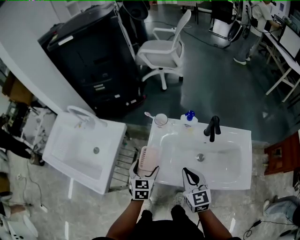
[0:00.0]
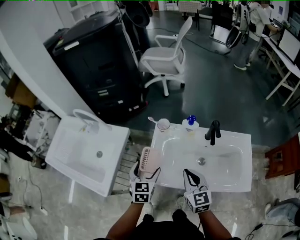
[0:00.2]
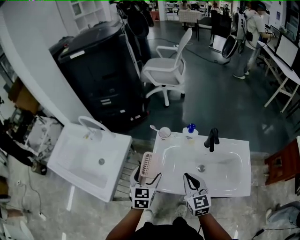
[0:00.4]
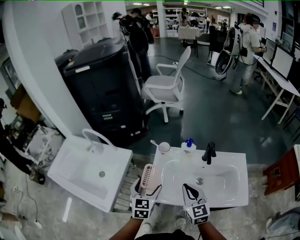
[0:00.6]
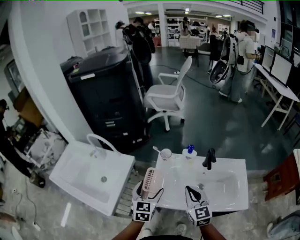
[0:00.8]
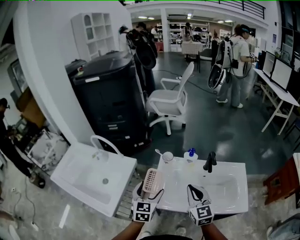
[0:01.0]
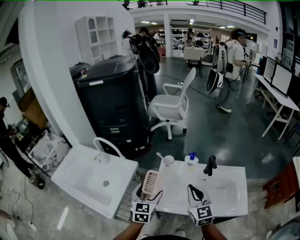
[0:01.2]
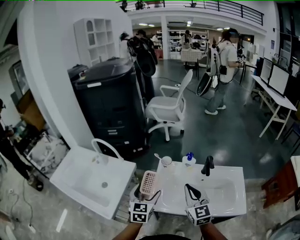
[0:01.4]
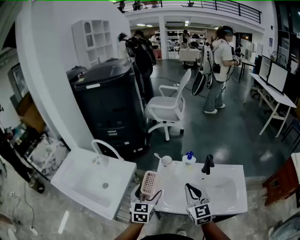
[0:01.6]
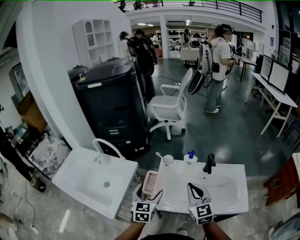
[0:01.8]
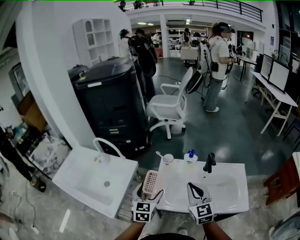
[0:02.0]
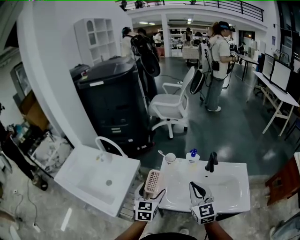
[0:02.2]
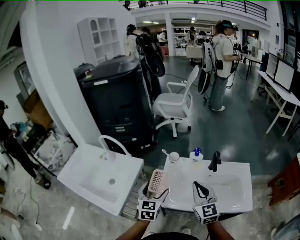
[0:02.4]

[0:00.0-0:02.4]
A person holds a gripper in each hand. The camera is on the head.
0:00.0 to 0:01.2: Both grippers move upward, about 10 cm.
0:01.2 to 0:02.4: There are only small adjustments of the grippers.

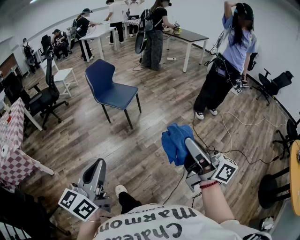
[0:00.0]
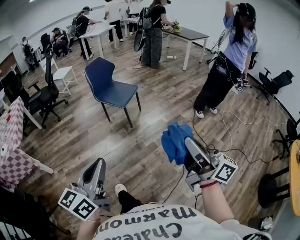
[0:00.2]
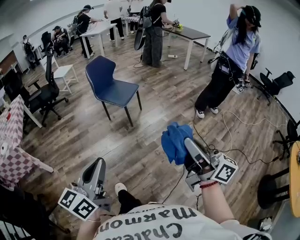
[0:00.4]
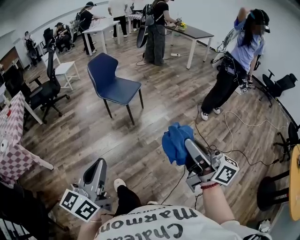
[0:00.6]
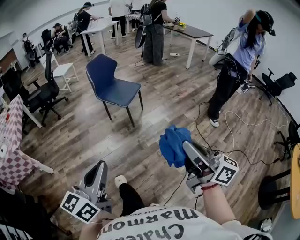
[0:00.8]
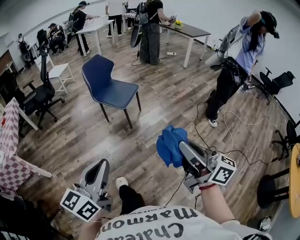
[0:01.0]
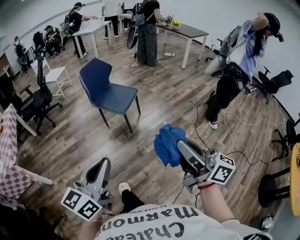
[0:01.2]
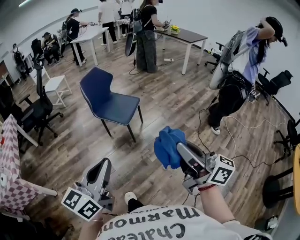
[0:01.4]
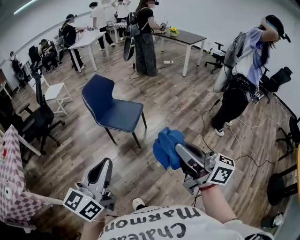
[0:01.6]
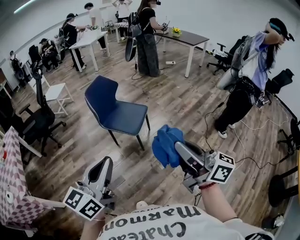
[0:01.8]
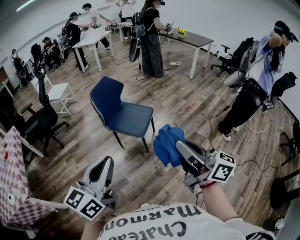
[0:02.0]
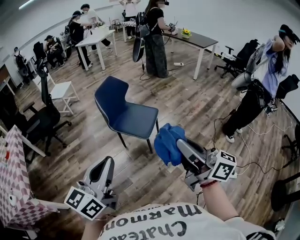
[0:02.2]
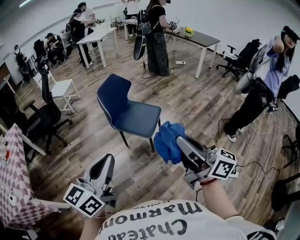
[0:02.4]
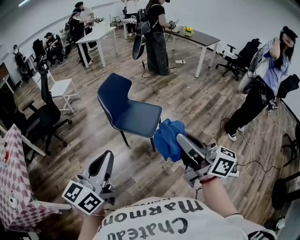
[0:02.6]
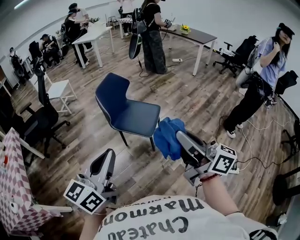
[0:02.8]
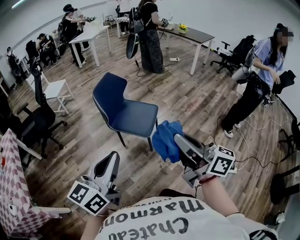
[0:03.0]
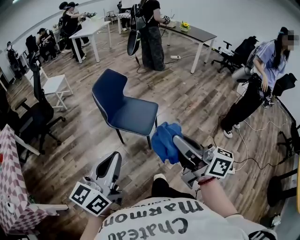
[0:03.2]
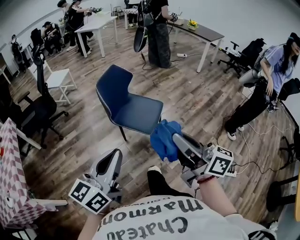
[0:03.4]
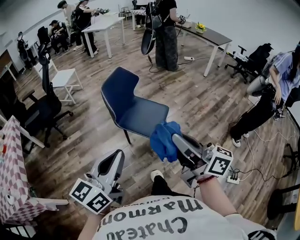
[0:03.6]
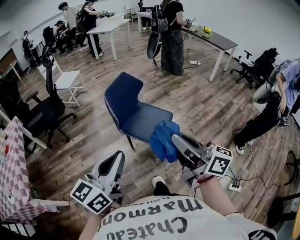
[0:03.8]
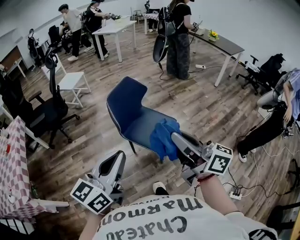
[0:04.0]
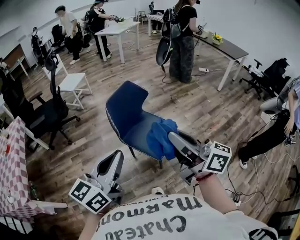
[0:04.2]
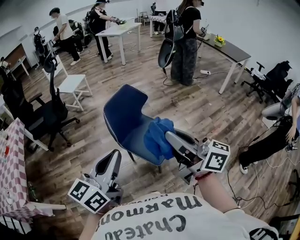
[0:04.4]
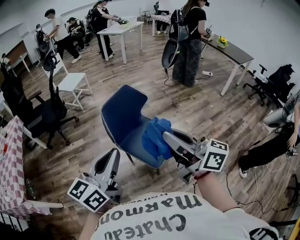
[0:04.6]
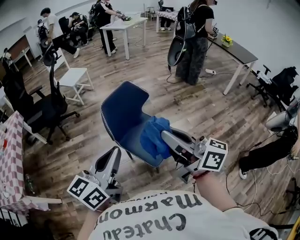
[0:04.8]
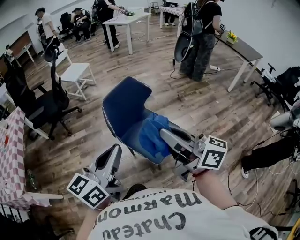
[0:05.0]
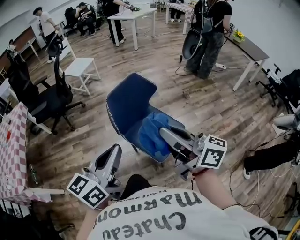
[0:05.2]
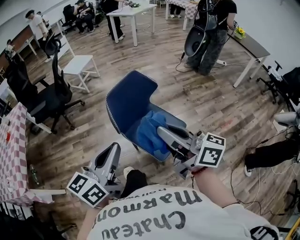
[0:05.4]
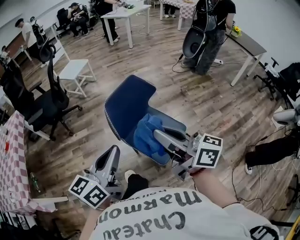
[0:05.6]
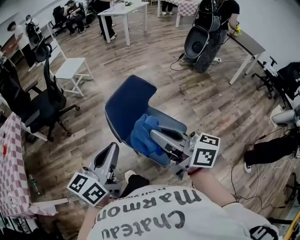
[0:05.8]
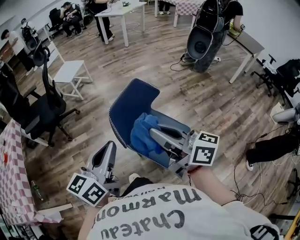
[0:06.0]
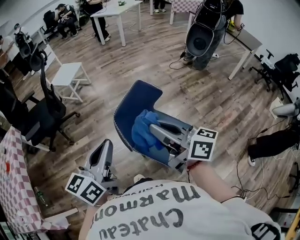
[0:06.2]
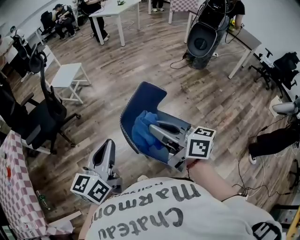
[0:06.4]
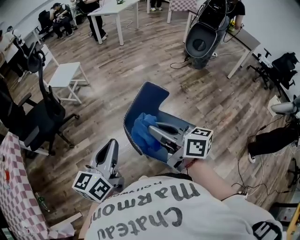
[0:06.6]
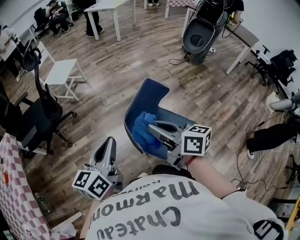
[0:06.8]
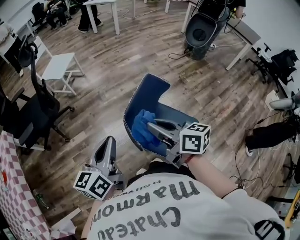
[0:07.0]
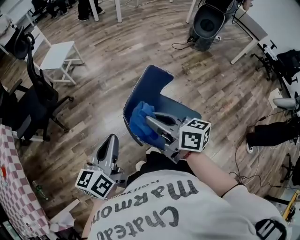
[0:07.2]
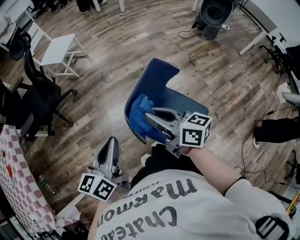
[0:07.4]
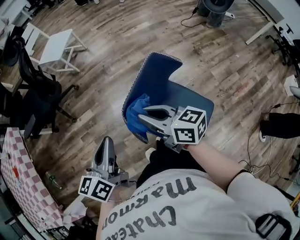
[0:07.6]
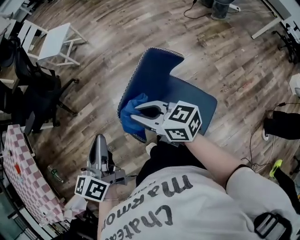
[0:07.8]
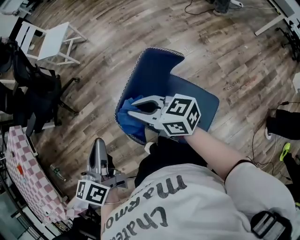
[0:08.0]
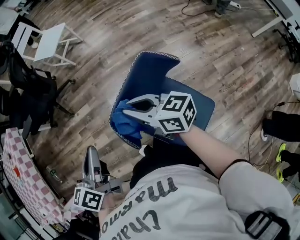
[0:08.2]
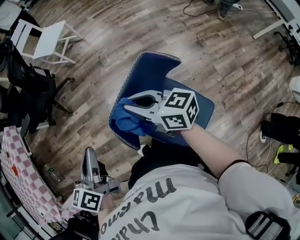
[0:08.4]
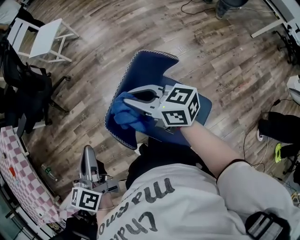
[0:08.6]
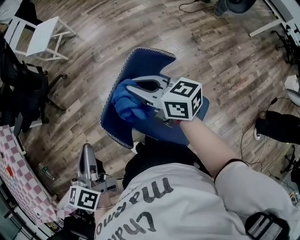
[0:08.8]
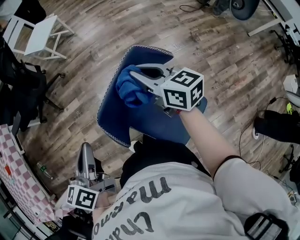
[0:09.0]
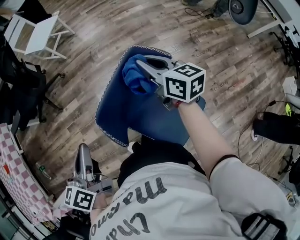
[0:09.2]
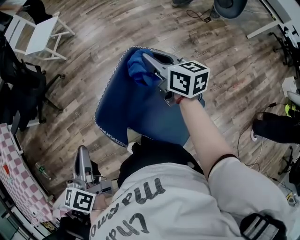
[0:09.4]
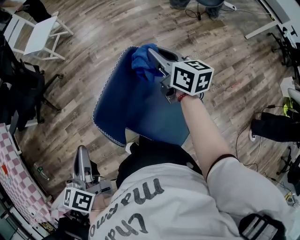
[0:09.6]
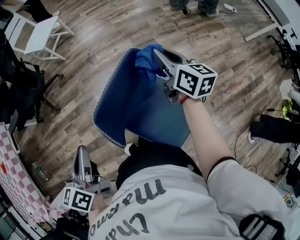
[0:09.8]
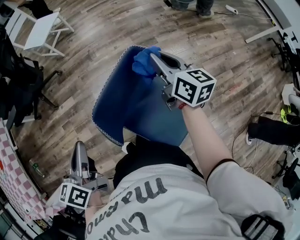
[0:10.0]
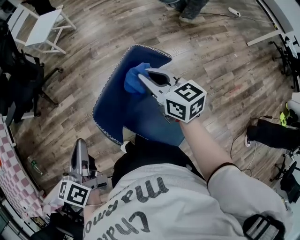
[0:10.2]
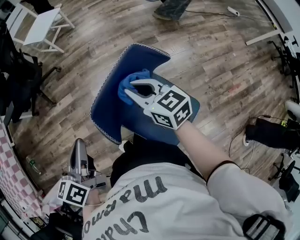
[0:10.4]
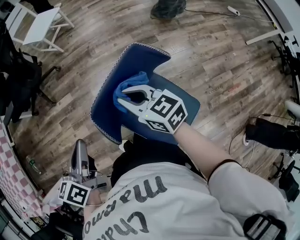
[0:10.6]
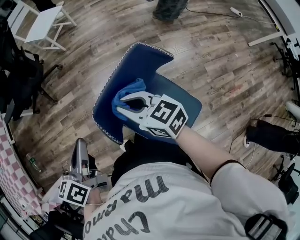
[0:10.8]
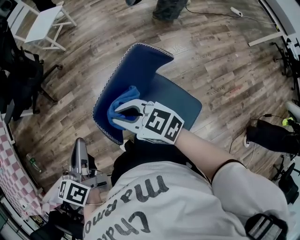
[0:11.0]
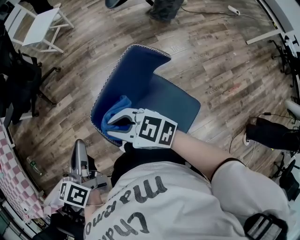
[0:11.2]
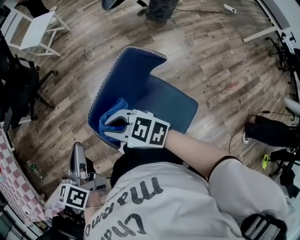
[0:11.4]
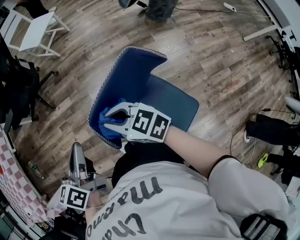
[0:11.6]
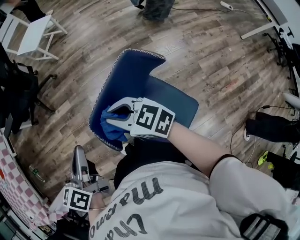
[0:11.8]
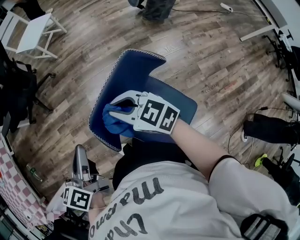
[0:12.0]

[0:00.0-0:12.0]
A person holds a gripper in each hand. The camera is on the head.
0:00.0 to 0:01.6: The right gripper moves forward and to the left, approximately 30 cm. The left gripper shifts about 30 cm forward.
0:01.6 to 0:03.0: The grippers both shift forward and to the left by some 20 cm.
0:03.0 to 0:04.4: Both grippers move forward, some 25 cm.
0:04.4 to 0:06.0: The two grippers go roughly 20 cm forward.
0:06.0 to 0:07.6: Both grippers travel together forward, downward and to the left, about 25 cm.
0:07.6 to 0:09.0: The right gripper shifts roughly 15 cm to the right and forward.
0:09.0 to 0:10.4: The right gripper reaches approximately 10 cm to the right, then returns.
0:10.4 to 0:12.0: The right gripper goes roughly 5 cm to the left, and turns by some 20 degrees.

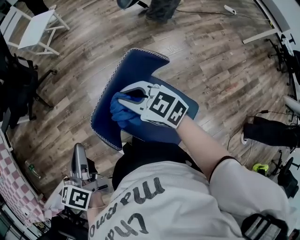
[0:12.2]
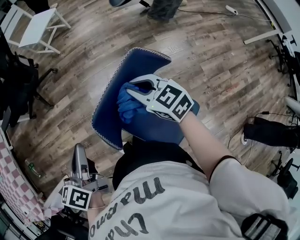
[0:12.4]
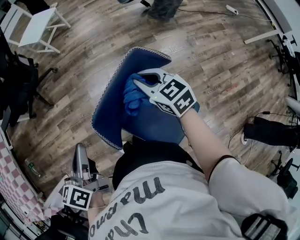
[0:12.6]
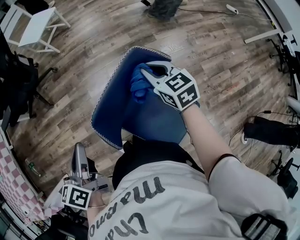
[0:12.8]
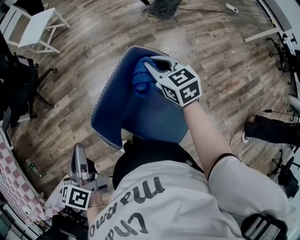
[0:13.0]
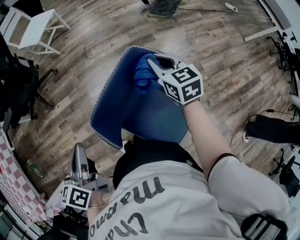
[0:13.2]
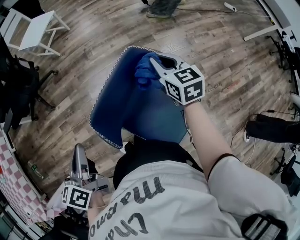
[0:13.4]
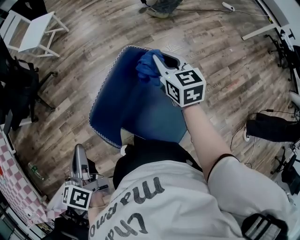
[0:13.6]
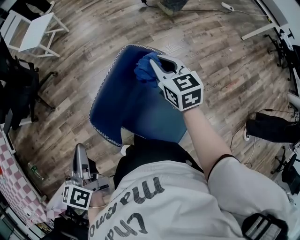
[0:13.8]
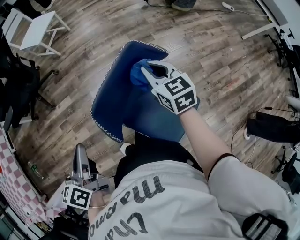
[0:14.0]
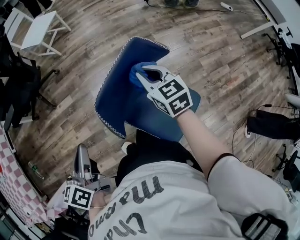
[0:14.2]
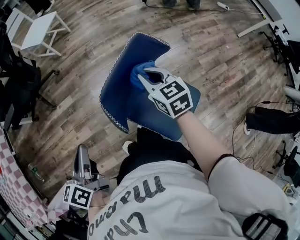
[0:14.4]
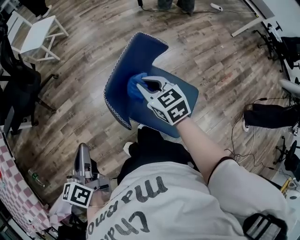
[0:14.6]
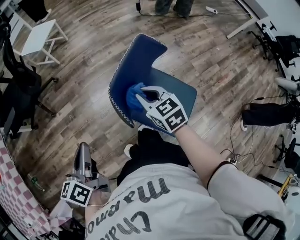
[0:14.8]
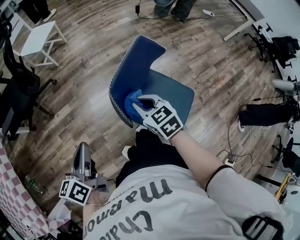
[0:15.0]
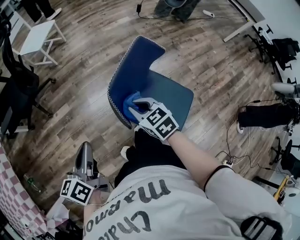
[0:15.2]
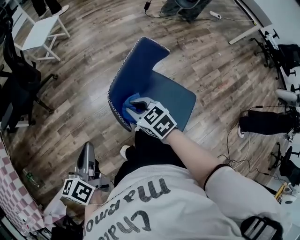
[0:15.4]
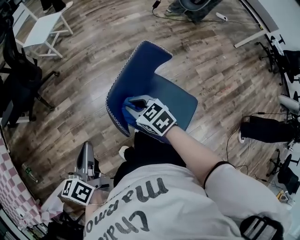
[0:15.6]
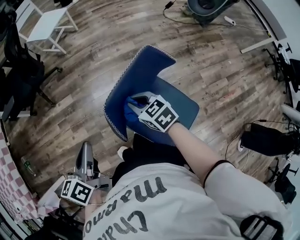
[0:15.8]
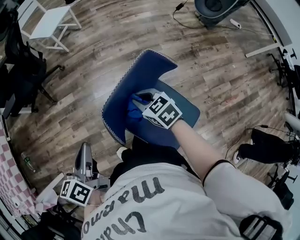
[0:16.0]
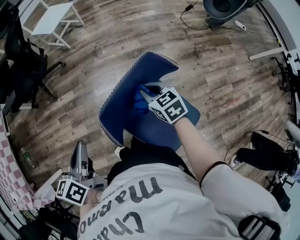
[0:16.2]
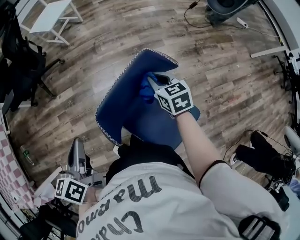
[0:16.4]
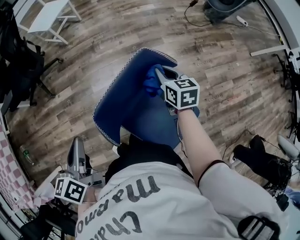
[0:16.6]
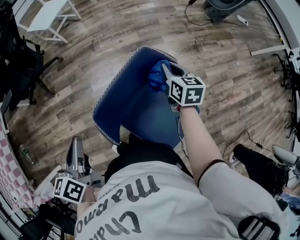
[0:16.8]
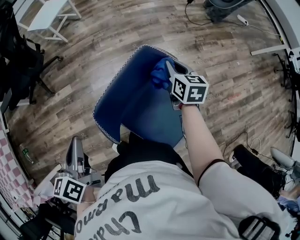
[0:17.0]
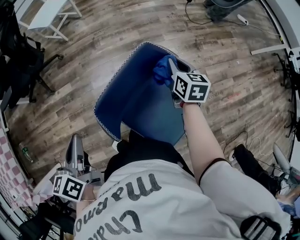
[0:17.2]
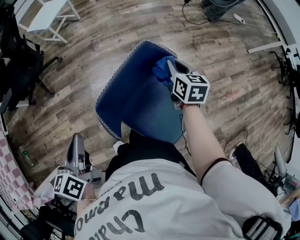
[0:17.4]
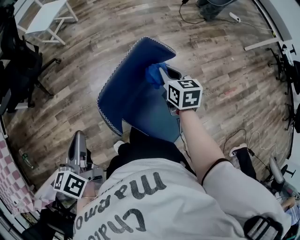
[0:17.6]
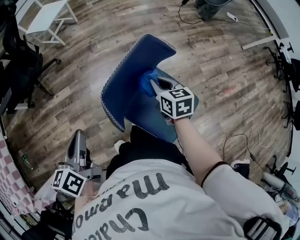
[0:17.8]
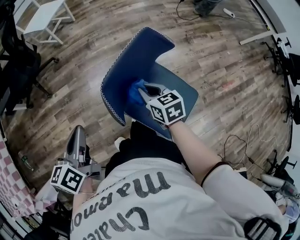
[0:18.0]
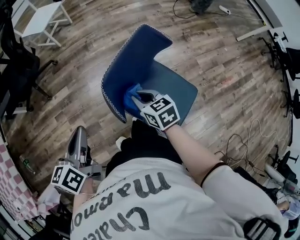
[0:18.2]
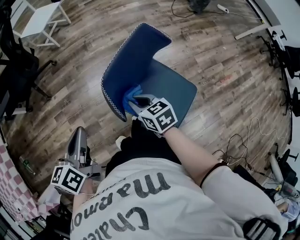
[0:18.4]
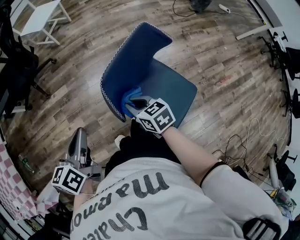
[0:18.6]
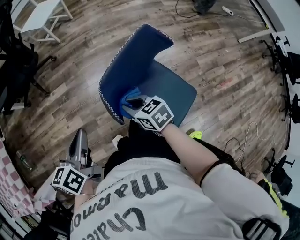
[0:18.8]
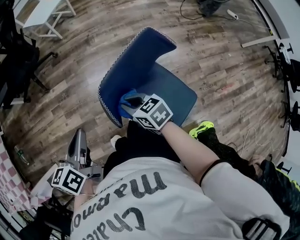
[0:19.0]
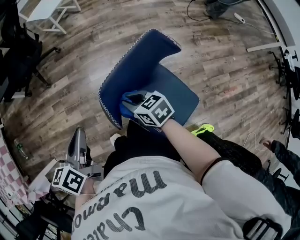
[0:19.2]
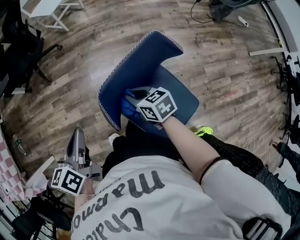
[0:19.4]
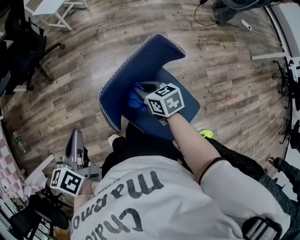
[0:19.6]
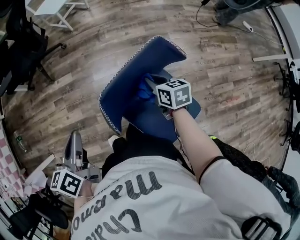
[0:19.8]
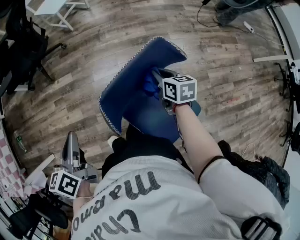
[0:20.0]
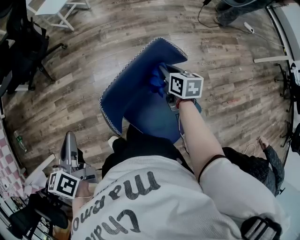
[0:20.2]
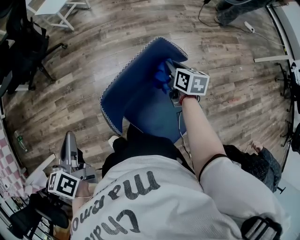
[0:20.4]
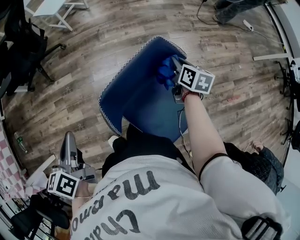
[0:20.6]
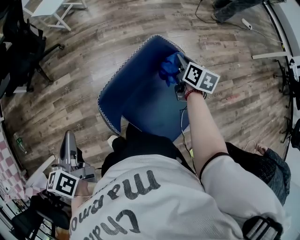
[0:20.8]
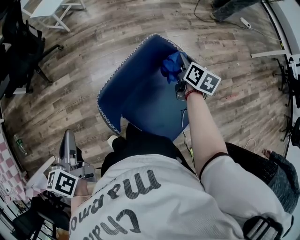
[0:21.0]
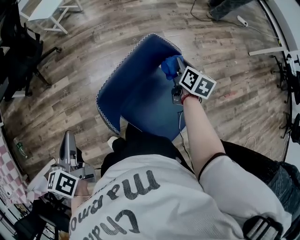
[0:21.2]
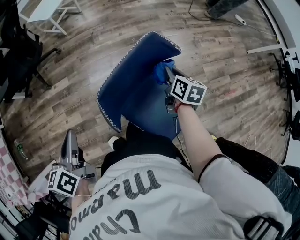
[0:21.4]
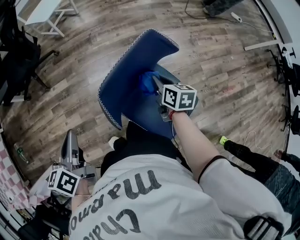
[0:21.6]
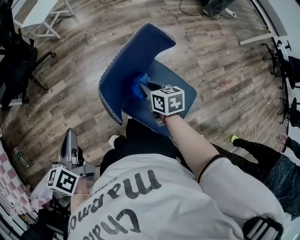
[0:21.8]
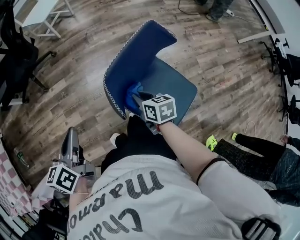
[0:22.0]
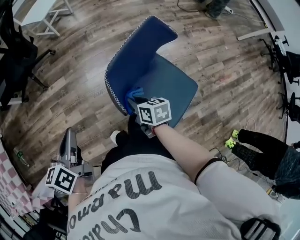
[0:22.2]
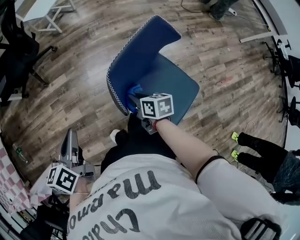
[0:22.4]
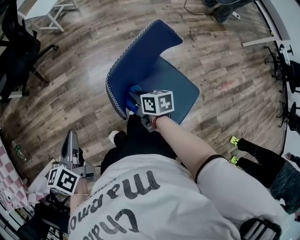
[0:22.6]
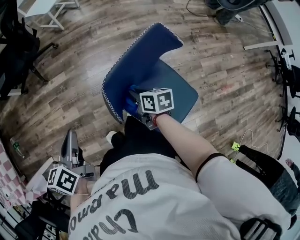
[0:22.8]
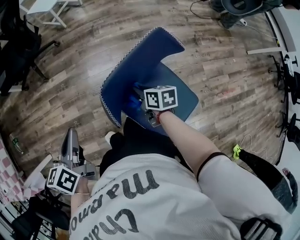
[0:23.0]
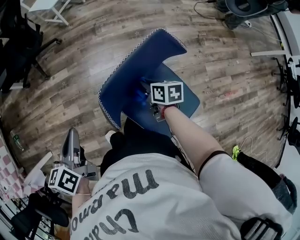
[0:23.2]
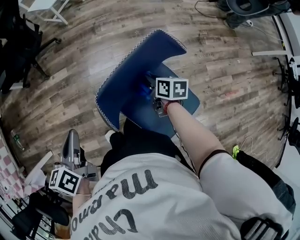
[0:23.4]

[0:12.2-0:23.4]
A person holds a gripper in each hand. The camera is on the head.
0:12.2 to 0:13.8: The right gripper travels to the right by some 15 cm, and changes its angle by approximately 40 degrees.
0:13.8 to 0:15.4: The right gripper moves to the left and backward, roughly 25 cm, and rotates about 30 degrees, while the left gripper travels to the left and backward by approximately 10 cm.
0:15.4 to 0:17.0: The left gripper shifts about 10 cm forward and to the right. The right gripper moves to the right and forward, approximately 30 cm, and swivels approximately 30 degrees.
0:17.0 to 0:18.6: The left gripper heads backward, covering roughly 5 cm. Meanwhile the right gripper is displaced to the left and backward by about 30 cm, and swivels approximately 30 degrees.
0:18.6 to 0:20.2: The right gripper moves to the right and forward, about 25 cm.
0:20.2 to 0:21.8: The right gripper travels backward and to the left by roughly 15 cm.
0:21.8 to 0:23.4: The right gripper travels forward and downward by about 10 cm, and reaches some 10 cm to the left, then returns.
